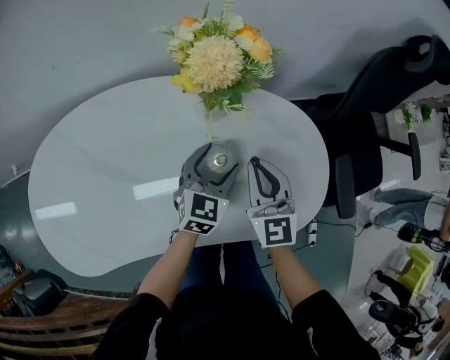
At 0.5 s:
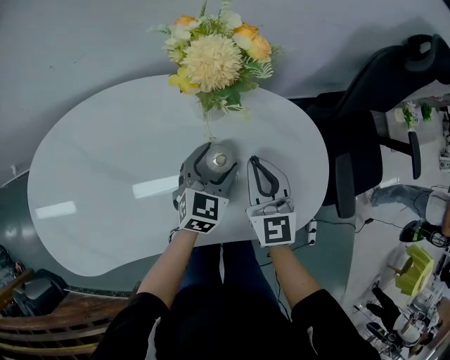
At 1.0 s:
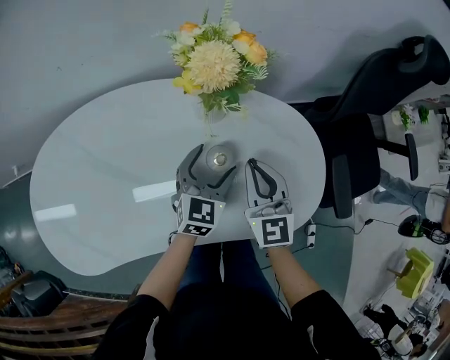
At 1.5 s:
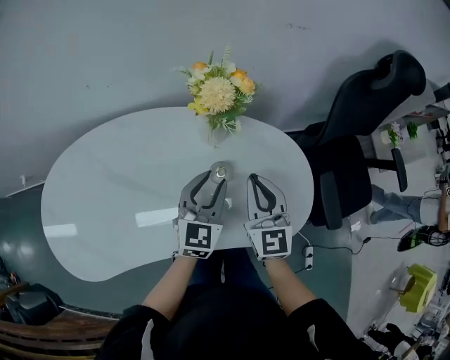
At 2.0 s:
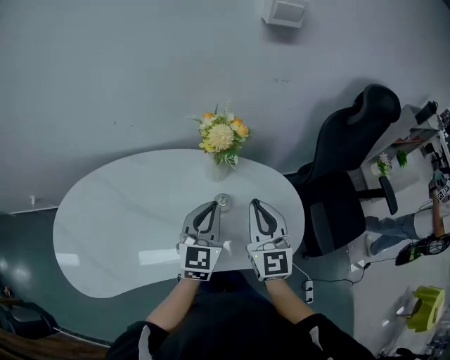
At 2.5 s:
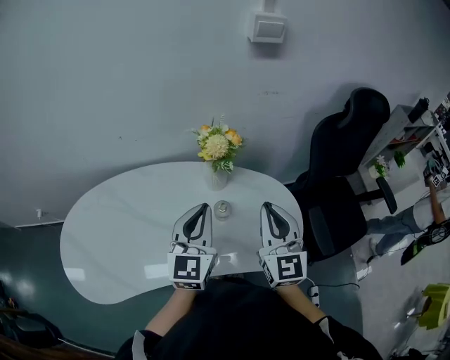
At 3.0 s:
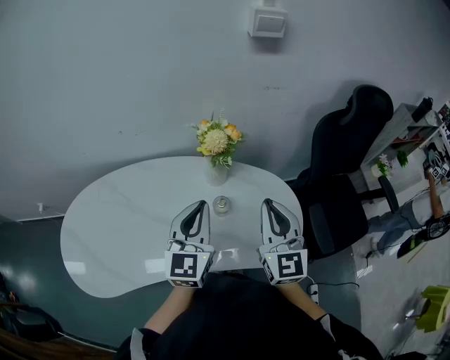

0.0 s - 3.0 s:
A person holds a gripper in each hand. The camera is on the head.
0.0 s - 1.5 s: Both grippers travel together upward, about 10 cm. The left gripper closes up.
1.5 s - 3.0 s: The two grippers go roughly 15 cm upward. The left gripper closes up.

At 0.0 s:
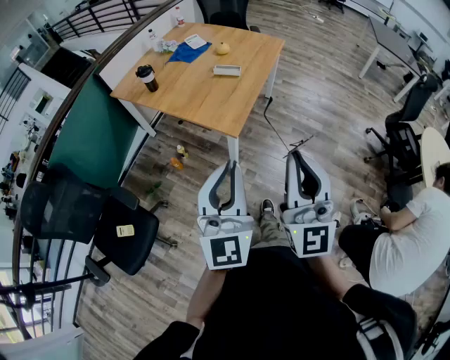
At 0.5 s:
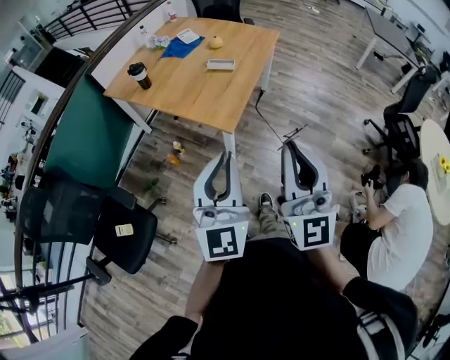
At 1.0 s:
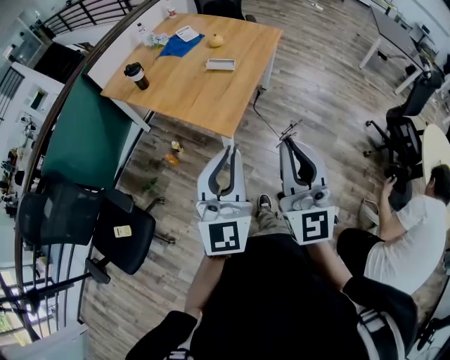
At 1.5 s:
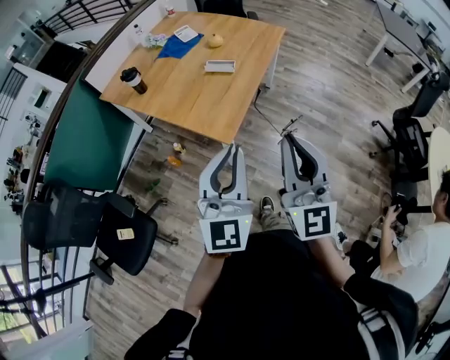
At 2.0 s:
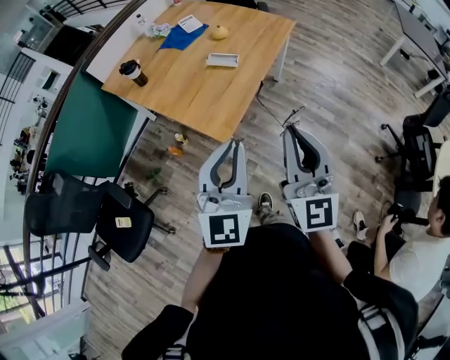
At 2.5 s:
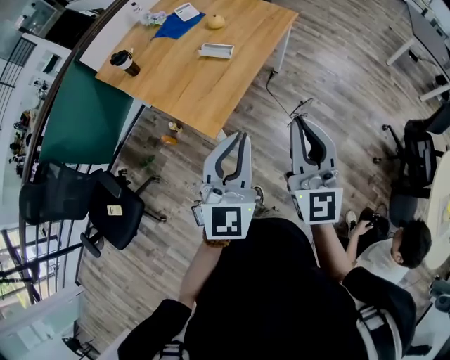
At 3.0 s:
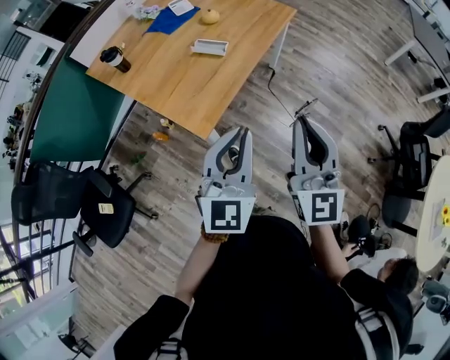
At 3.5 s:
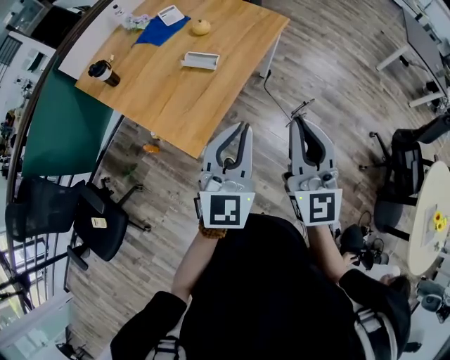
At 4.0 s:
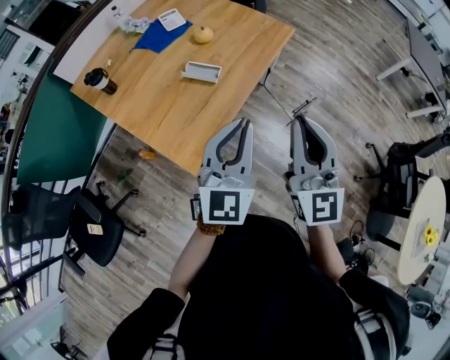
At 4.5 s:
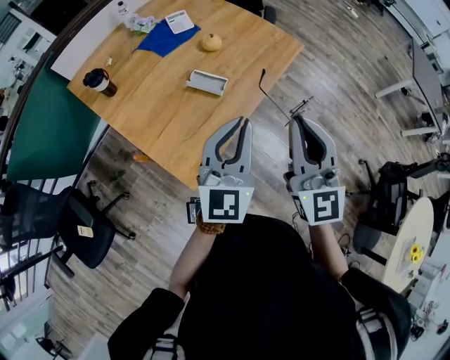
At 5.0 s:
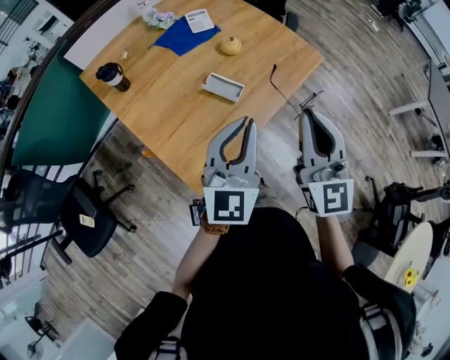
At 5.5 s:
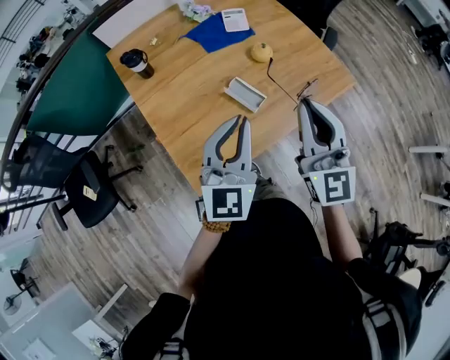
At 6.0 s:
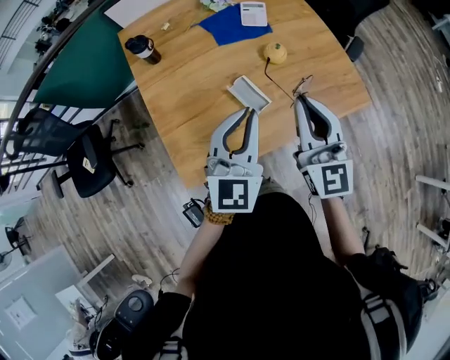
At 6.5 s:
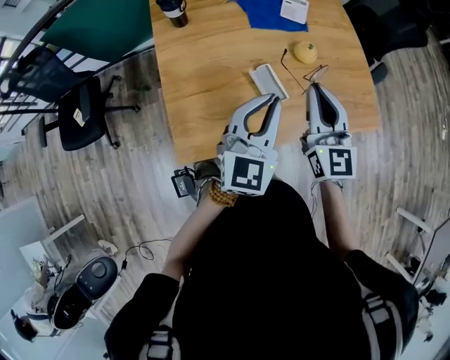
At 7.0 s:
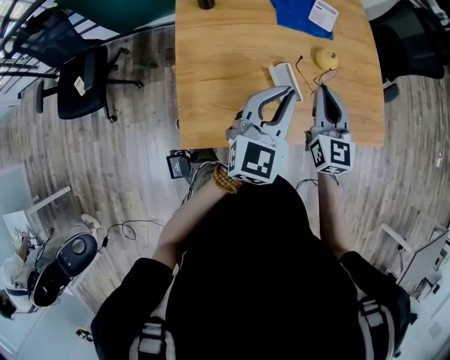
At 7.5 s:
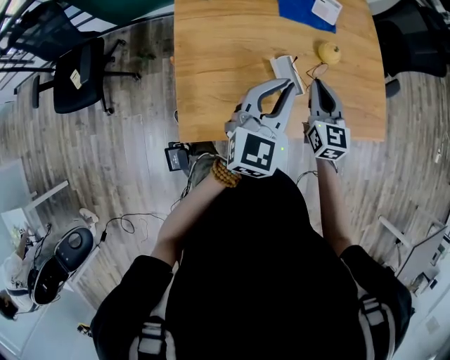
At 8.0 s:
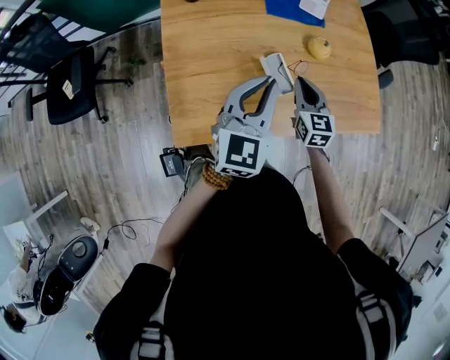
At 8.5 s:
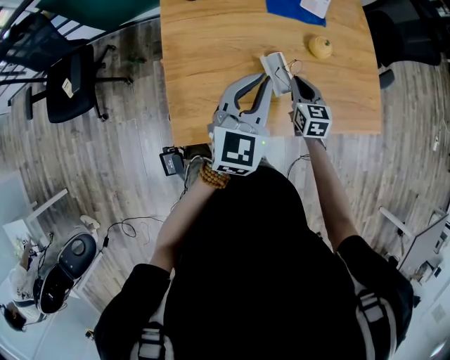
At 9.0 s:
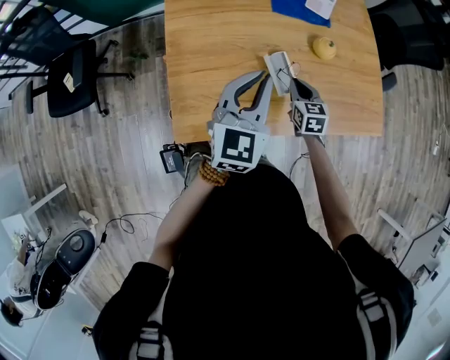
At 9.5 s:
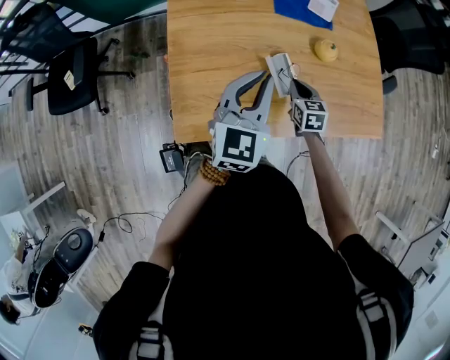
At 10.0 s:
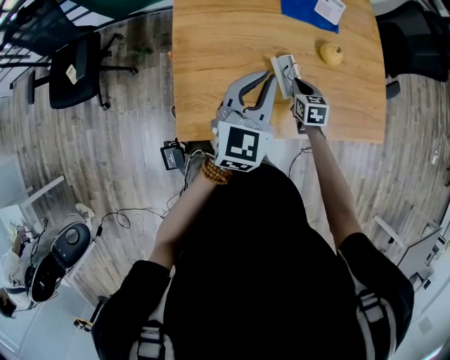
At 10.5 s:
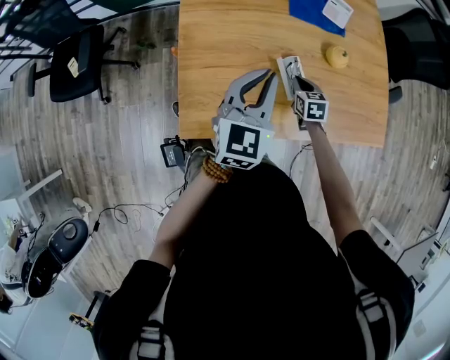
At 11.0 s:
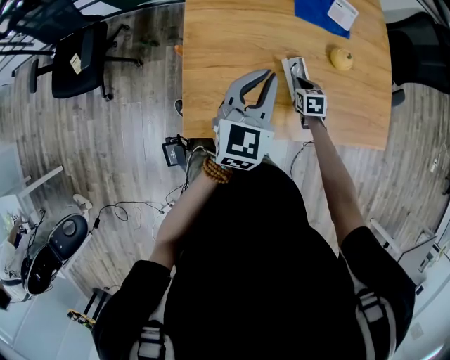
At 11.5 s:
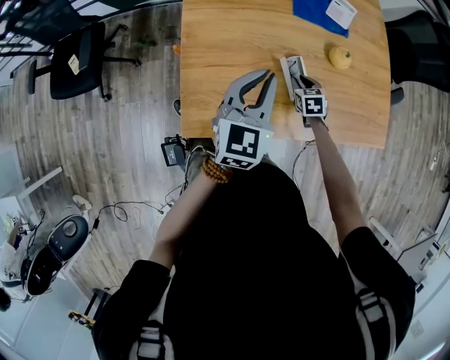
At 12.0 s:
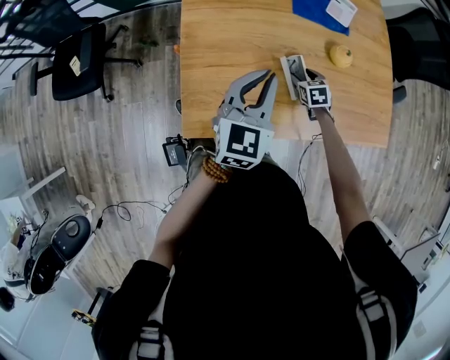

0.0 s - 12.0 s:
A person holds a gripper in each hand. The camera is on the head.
0.0 s - 2.0 s: Both grippers move forward and to the right, approximately 20 cm.
2.0 s - 4.0 s: The left gripper heads forward and to the right, covering roughly 25 cm. The right gripper goes about 20 cm forward.
4.0 s - 6.0 s: The right gripper changes place by some 35 cm, and swivels some 40 degrees, while the left gripper ends up approximately 25 cm from where it was, and changes its angle by some 30 degrees.
6.0 s - 8.0 s: The left gripper moves to the left and downward, roughly 10 cm. The right gripper shifts some 25 cm downward and forward, and swivels roughly 30 degrees.
8.0 s - 10.0 s: The right gripper travels downward by approximately 10 cm, and turns by approximately 20 degrees.
10.0 s - 12.0 s: The right gripper goes about 5 cm downward, and opens its fingers.

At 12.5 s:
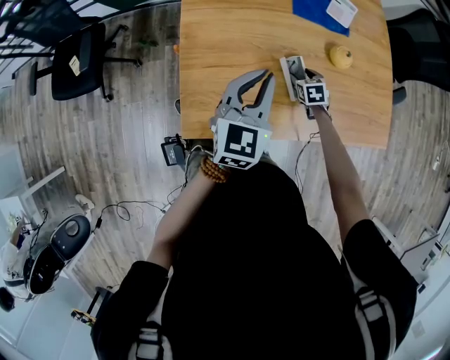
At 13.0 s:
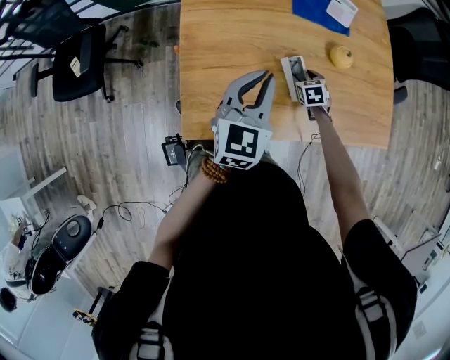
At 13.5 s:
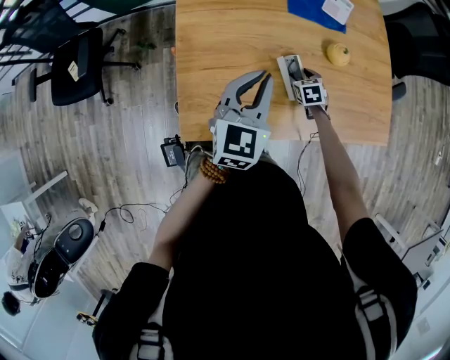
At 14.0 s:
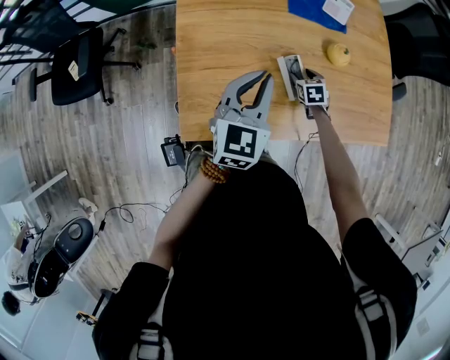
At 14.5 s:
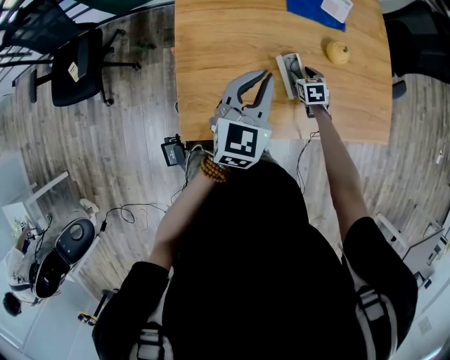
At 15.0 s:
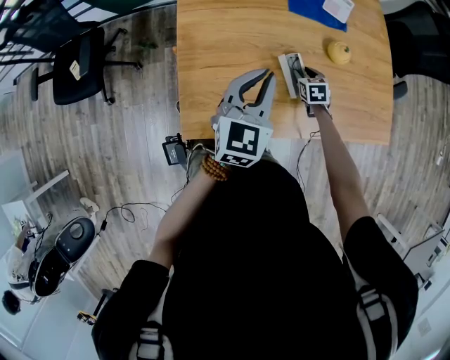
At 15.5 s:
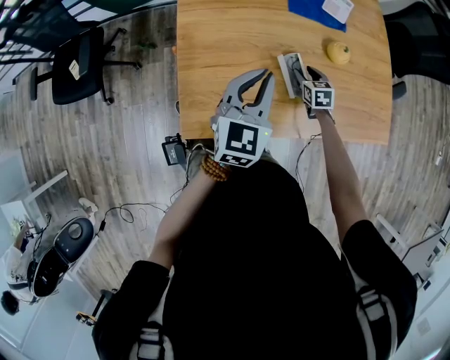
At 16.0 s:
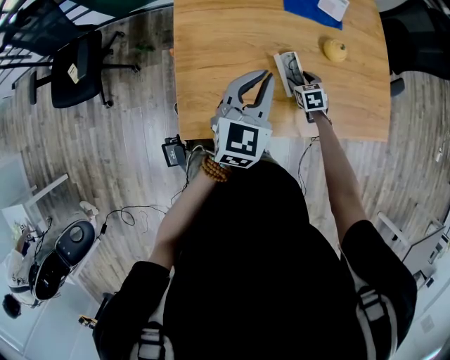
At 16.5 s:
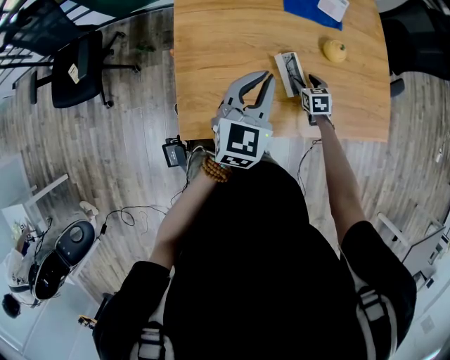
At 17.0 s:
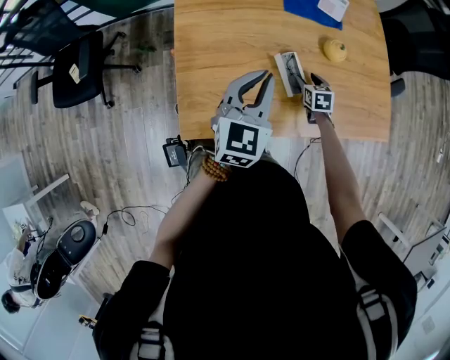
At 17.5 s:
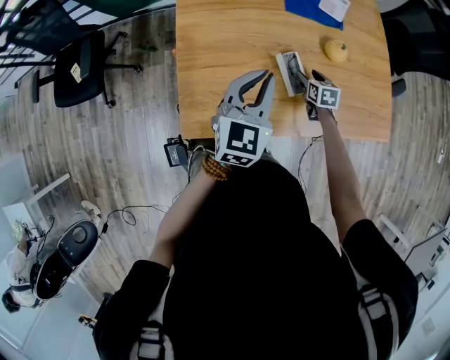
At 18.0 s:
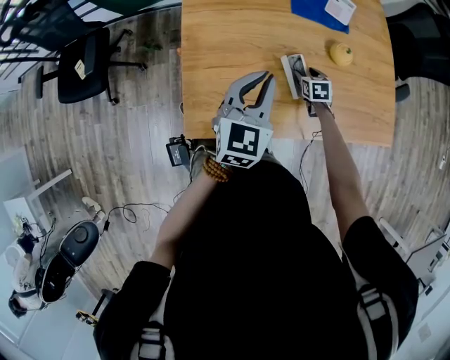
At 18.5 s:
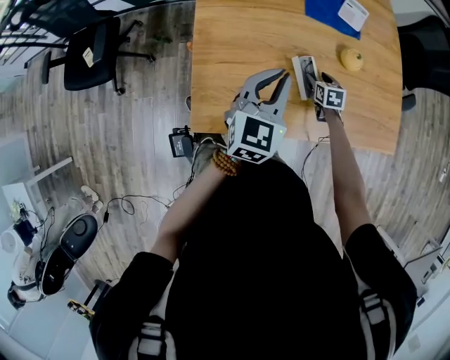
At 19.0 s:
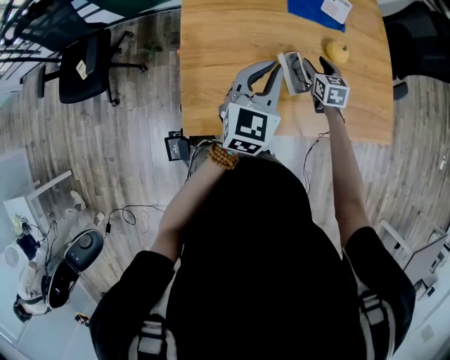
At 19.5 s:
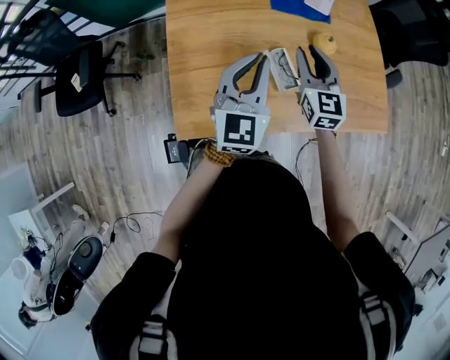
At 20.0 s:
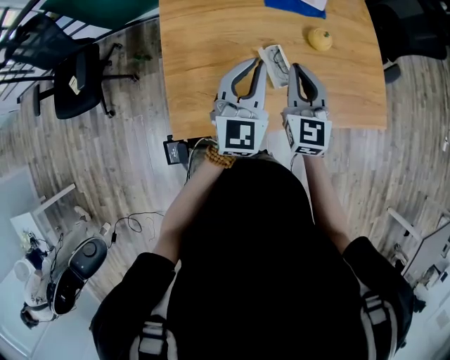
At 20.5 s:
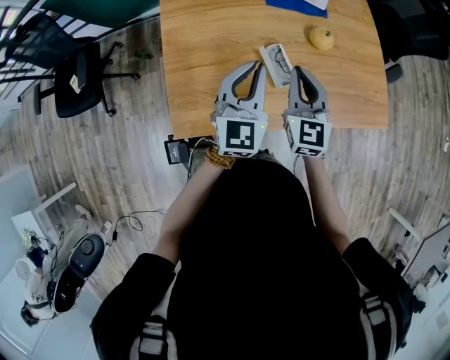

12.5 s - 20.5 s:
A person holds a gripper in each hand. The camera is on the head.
12.5 s - 16.5 s: There are only small adjustments of the grippers.
16.5 s - 18.5 s: The grippers move only a little.
18.5 s - 20.5 s: The right gripper travels upward by about 25 cm, tips its fingers upward by some 40 degrees, and closes up.

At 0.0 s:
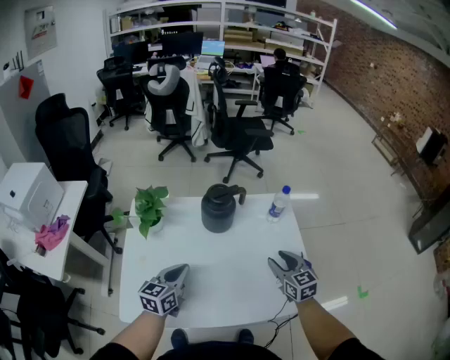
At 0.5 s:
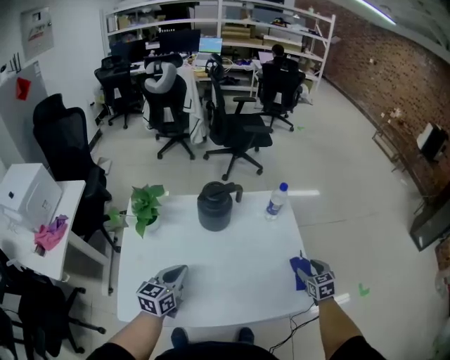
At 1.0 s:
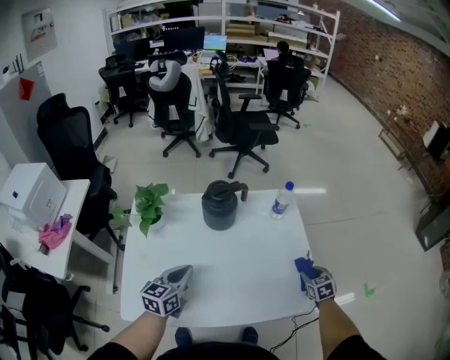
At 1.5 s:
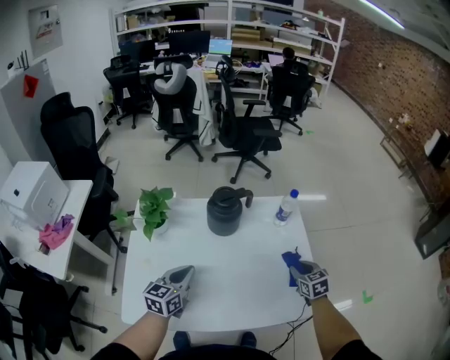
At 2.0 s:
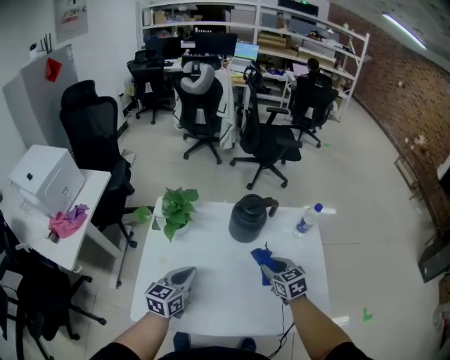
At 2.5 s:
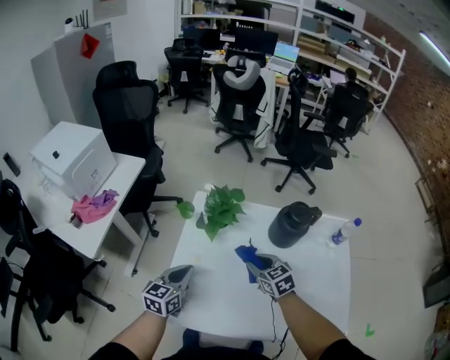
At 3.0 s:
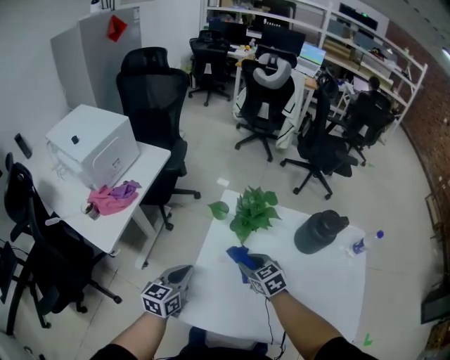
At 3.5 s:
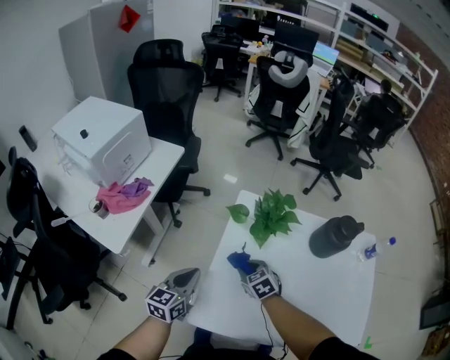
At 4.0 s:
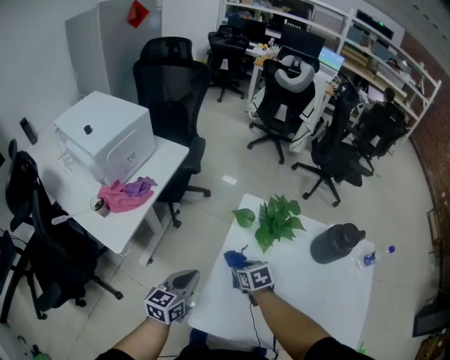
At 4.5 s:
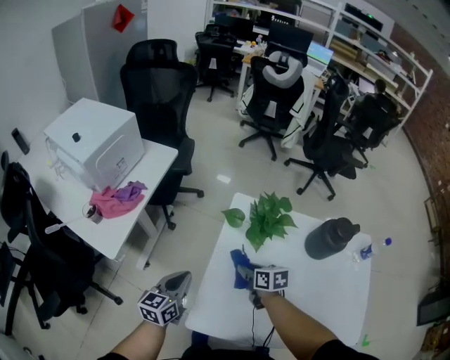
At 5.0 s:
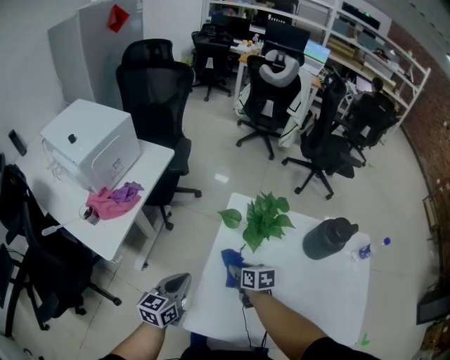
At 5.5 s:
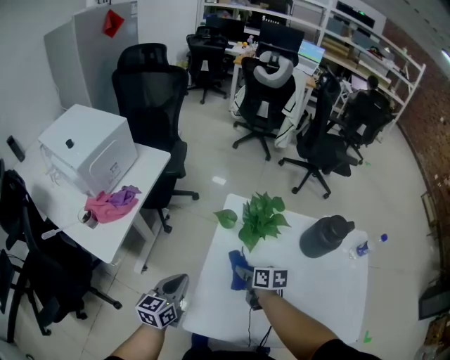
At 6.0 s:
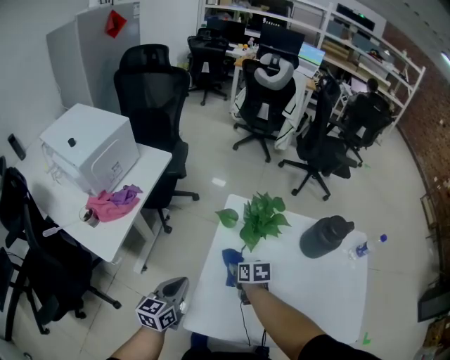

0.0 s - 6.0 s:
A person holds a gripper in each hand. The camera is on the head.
0.0 s - 2.0 s: The right gripper heads to the left, covering roughly 15 cm, and closes its fingers; the left gripper is displaced to the left by about 5 cm.
2.0 s - 4.0 s: Both grippers move to the left, roughly 35 cm. The right gripper turns by some 30 degrees.
4.0 s - 6.0 s: The right gripper swivels roughly 20 degrees.
